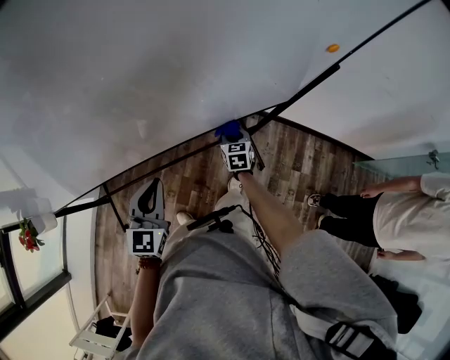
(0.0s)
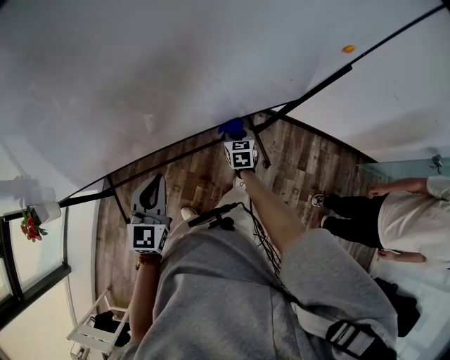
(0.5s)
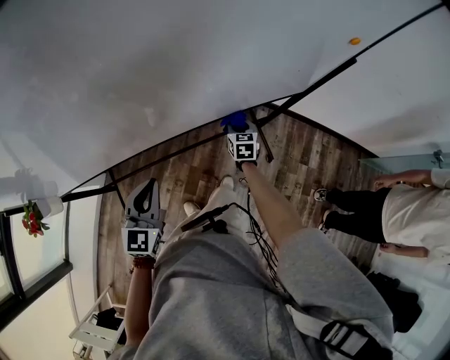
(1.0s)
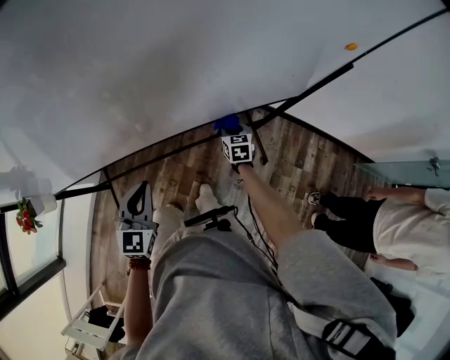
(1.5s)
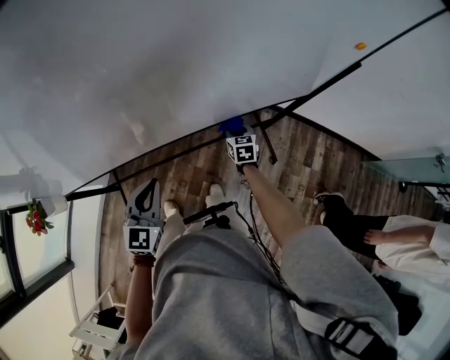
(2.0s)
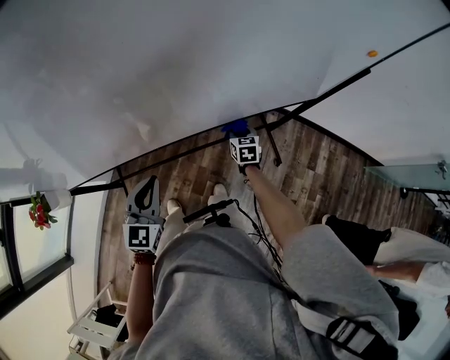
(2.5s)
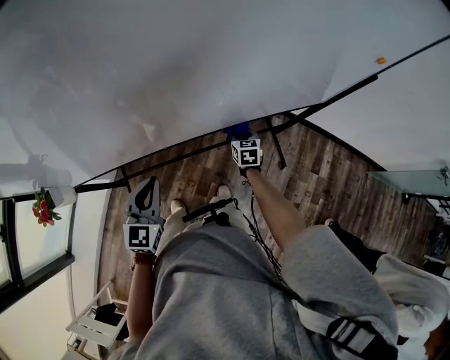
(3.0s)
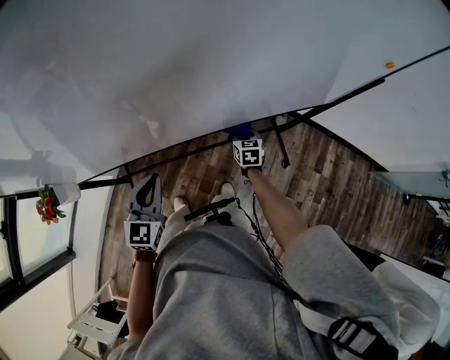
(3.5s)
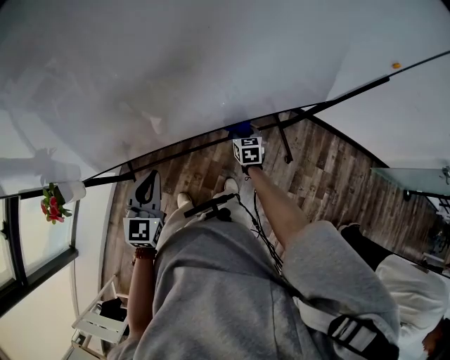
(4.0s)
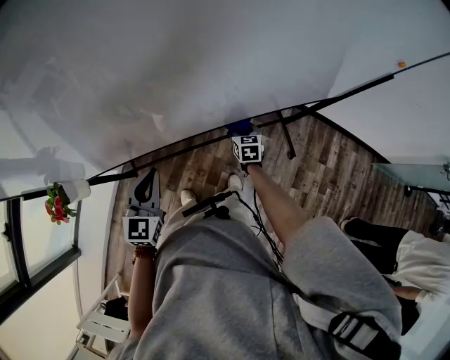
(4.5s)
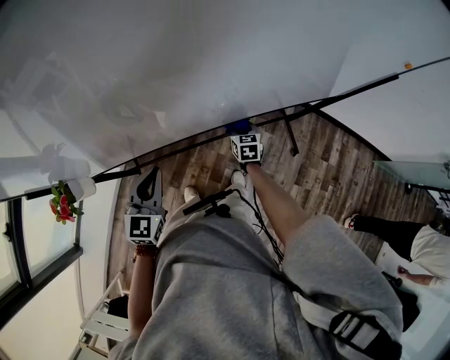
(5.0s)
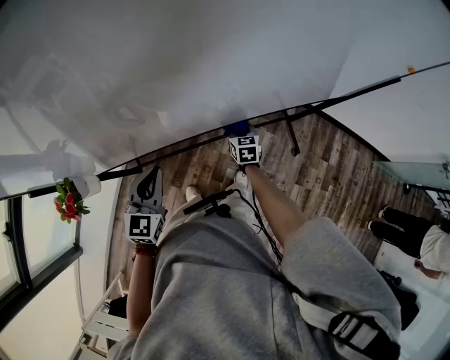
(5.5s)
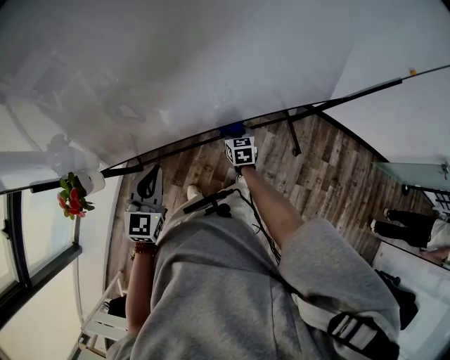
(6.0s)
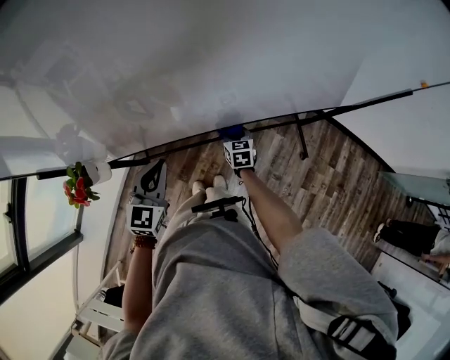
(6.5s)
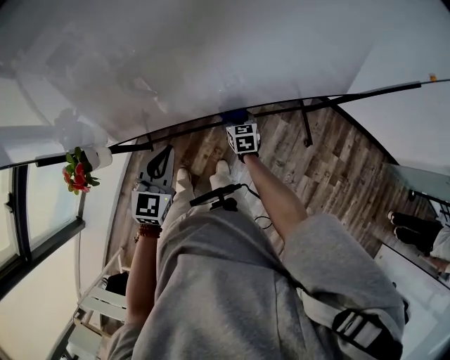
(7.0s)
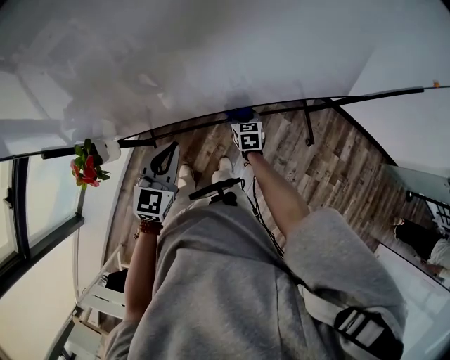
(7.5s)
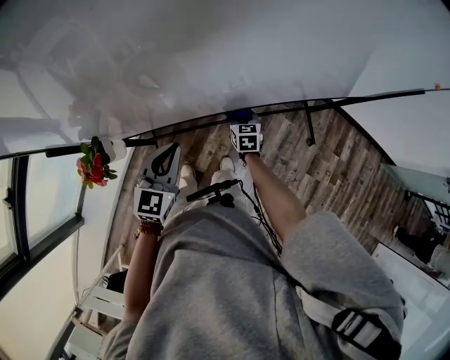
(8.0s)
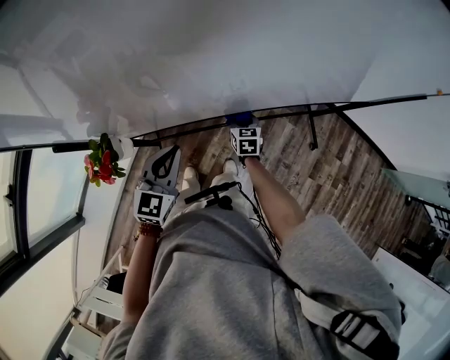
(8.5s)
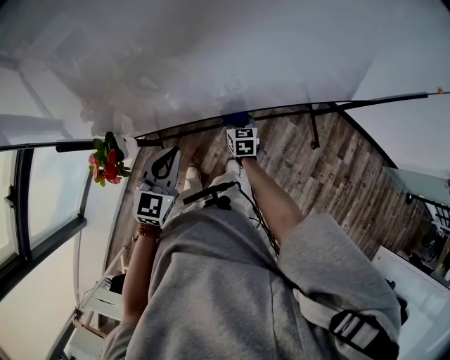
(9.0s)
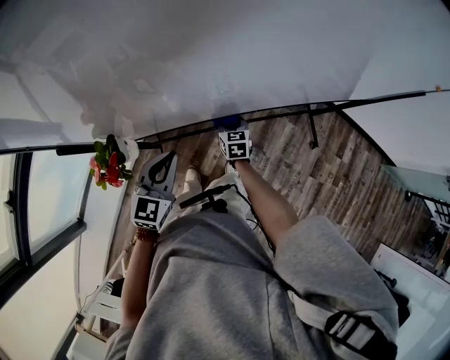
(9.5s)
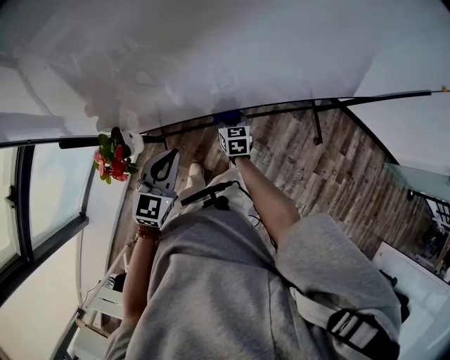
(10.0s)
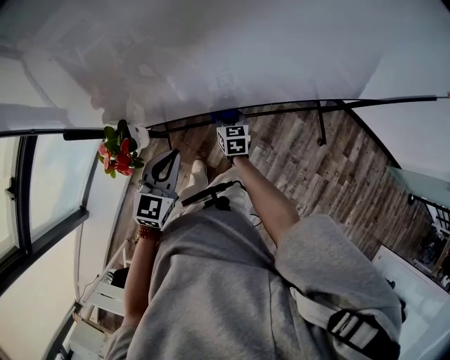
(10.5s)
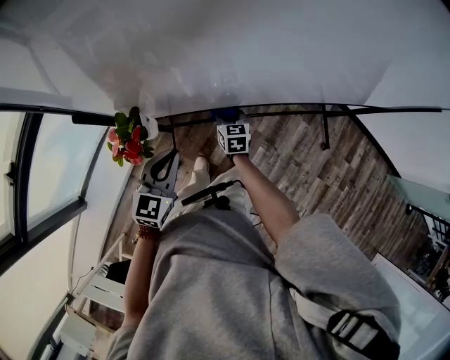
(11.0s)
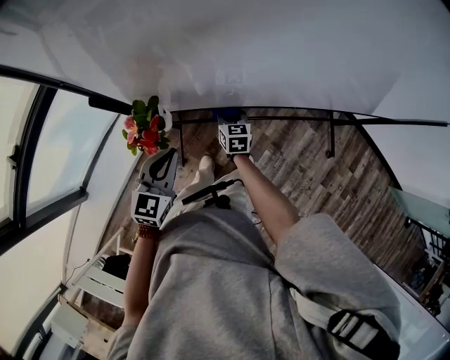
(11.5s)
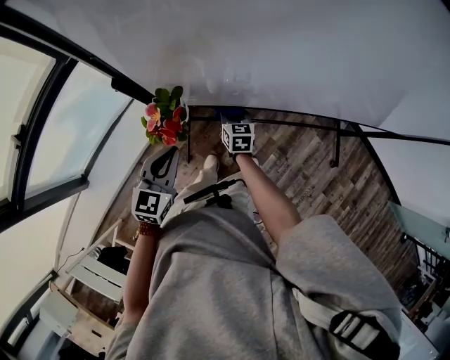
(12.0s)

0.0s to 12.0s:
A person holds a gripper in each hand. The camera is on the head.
0.0s to 2.0s: Both grippers travel together to the left, about 10 cm.
2.0s to 4.0s: Both grippers move to the left, approximately 10 cm.
4.0s to 6.0s: Both grippers travel together to the left, roughly 10 cm.
6.0s to 8.0s: The right gripper moves to the left, roughly 10 cm.
8.0s to 10.0s: The left gripper heads to the left, covering approximately 5 cm; the right gripper heads to the left, covering some 10 cm.
10.0s to 12.0s: The right gripper is displaced to the left by roughly 15 cm. The left gripper heads to the left and backward, covering roughly 15 cm.

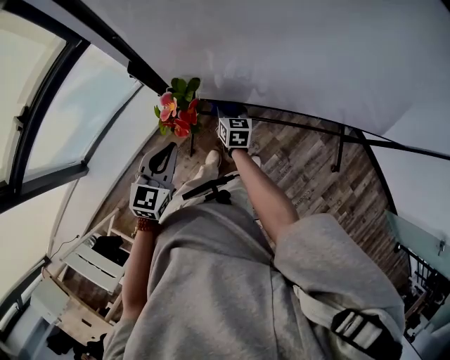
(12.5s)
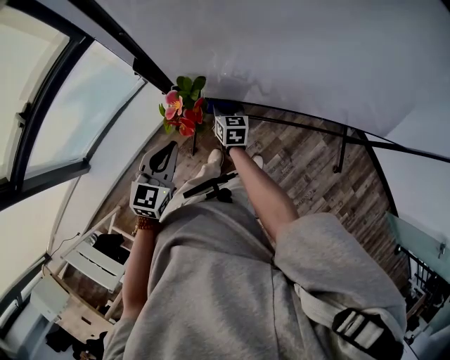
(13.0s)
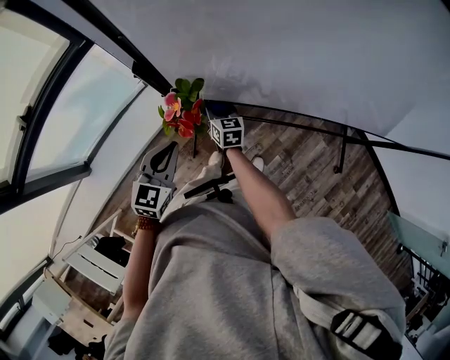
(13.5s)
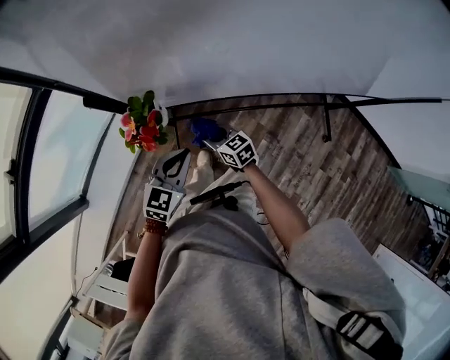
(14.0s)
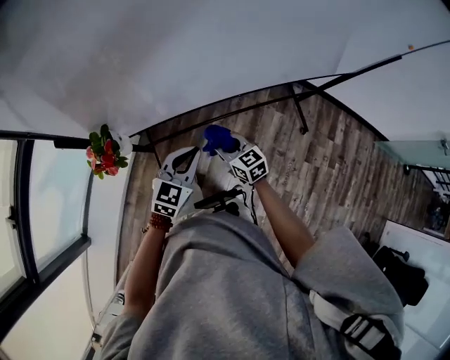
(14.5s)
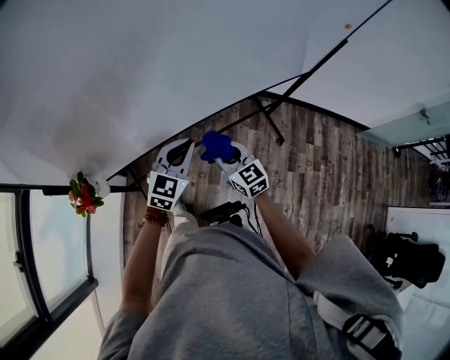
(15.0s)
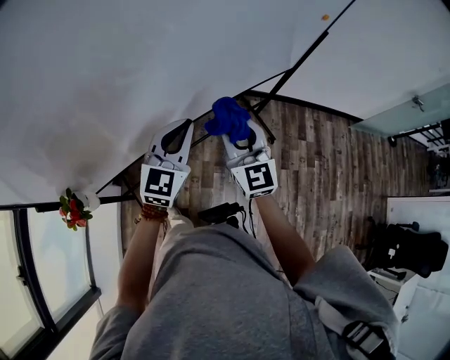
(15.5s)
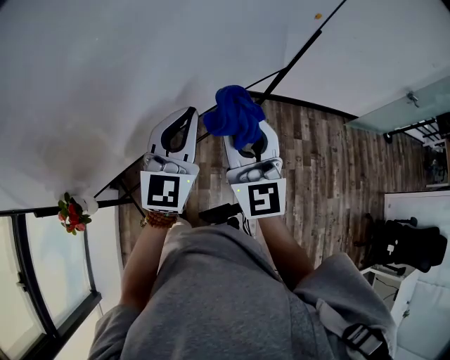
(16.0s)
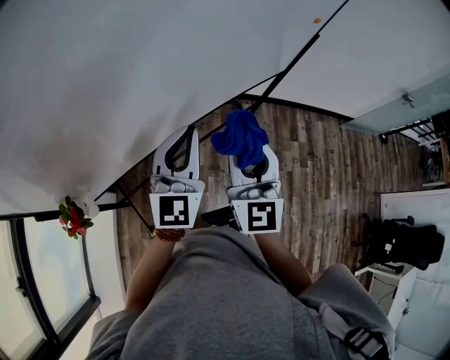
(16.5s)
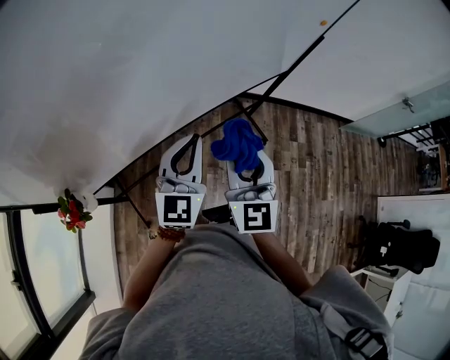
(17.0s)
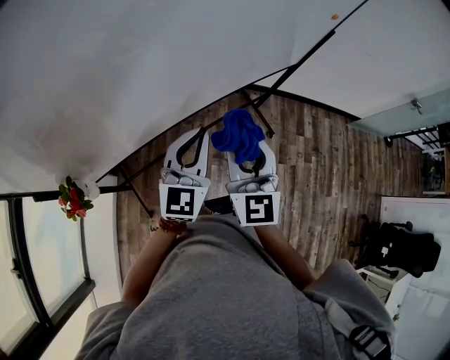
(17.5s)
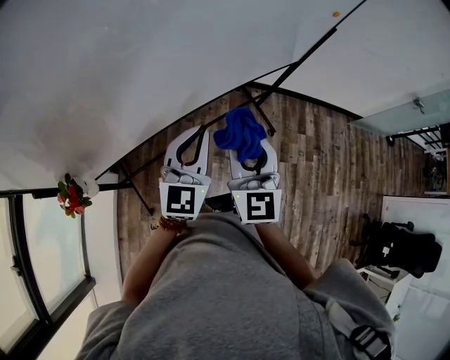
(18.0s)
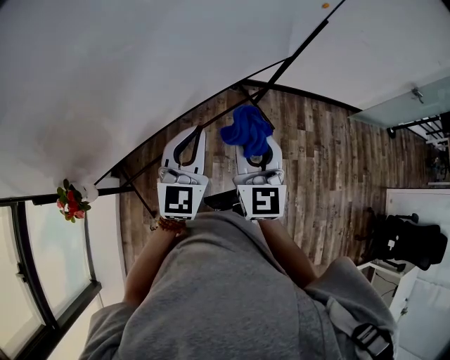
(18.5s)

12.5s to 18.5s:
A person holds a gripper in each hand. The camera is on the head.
12.5s to 14.5s: The right gripper moves to the right, backward and upward, approximately 25 cm. The left gripper heads to the right, covering roughly 25 cm, and swivels some 30 degrees.
14.5s to 16.5s: The two grippers go roughly 40 cm upward and to the right. The right gripper tips its fingers upward by approximately 30 degrees. The left gripper swivels some 30 degrees.
16.5s to 18.5s: Both grippers move downward, about 5 cm.

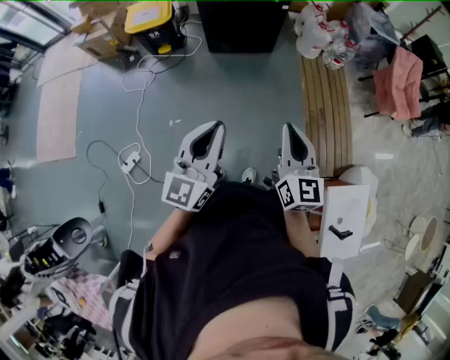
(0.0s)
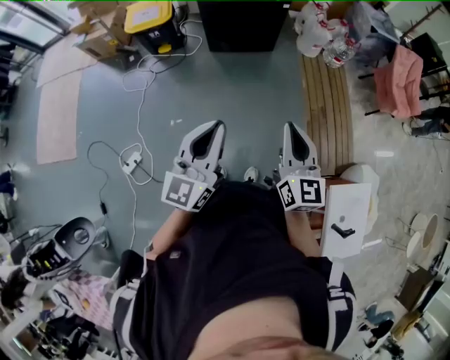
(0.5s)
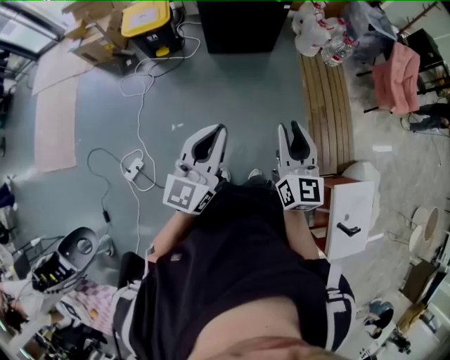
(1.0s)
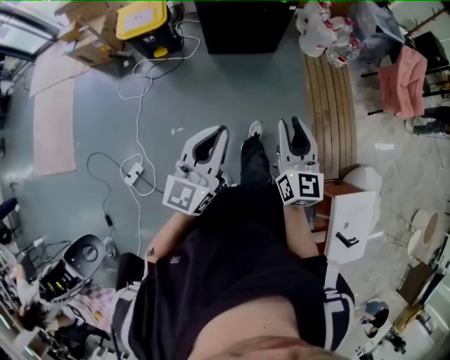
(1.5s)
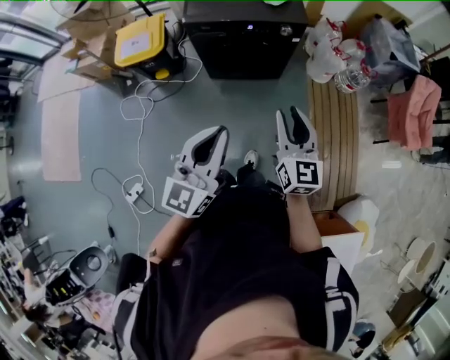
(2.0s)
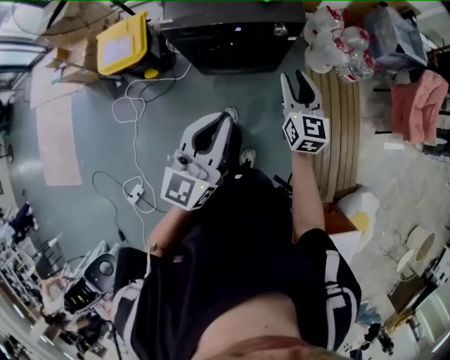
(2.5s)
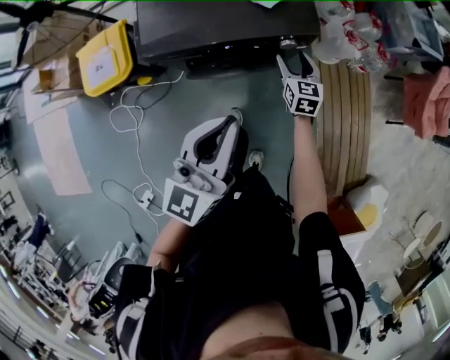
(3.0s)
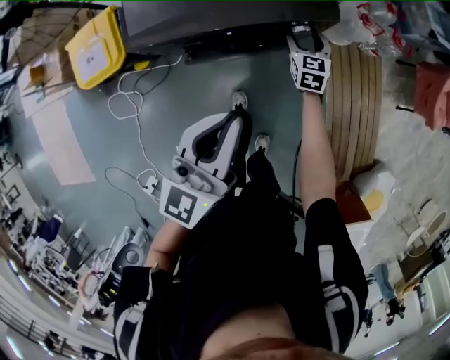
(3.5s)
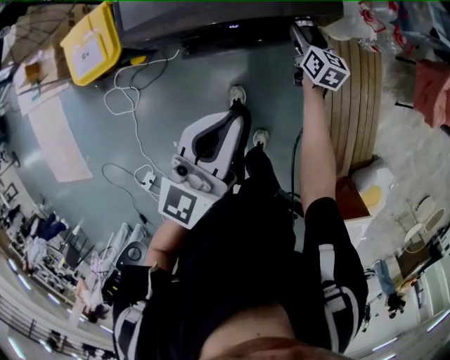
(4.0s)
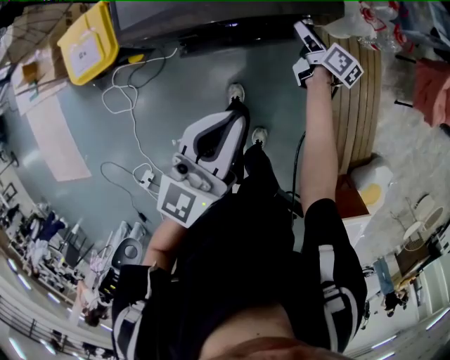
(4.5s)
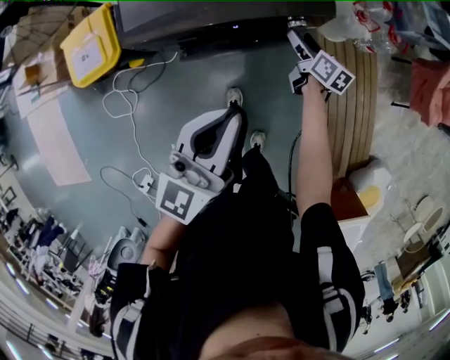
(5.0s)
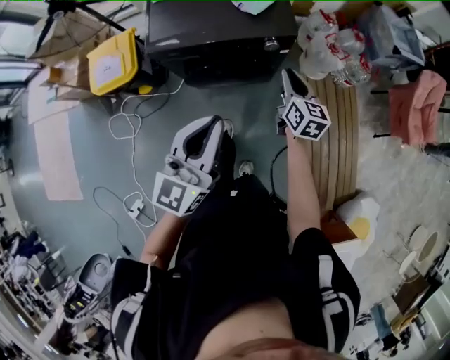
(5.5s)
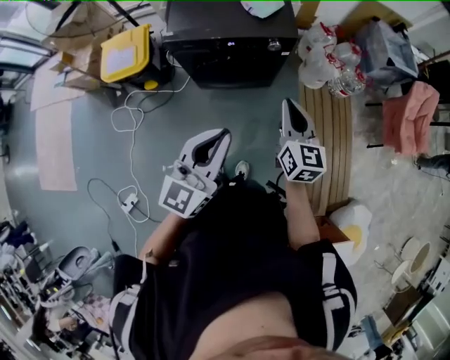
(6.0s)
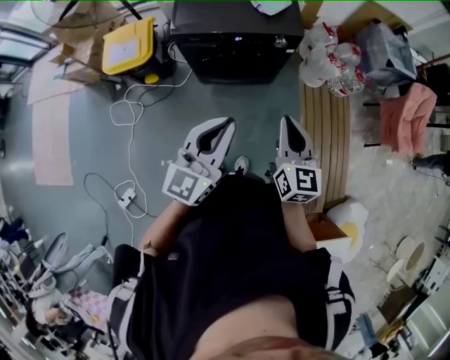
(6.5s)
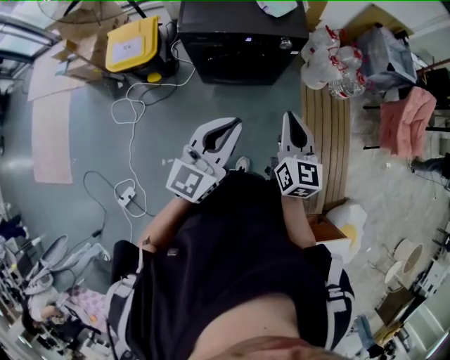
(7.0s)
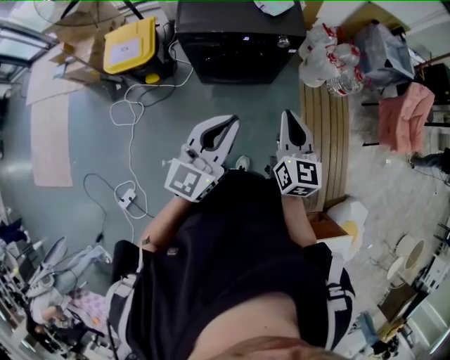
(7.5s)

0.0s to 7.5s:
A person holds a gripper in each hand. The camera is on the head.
0.0s to 2.0s: The two grippers travel together, forward, approximately 50 cm. The right gripper opens.
2.0s to 4.0s: The two grippers travel together, forward, some 60 cm. The left gripper moves downward, about 25 cm, while the right gripper is displaced downward by approximately 40 cm, swivels some 30 degrees, and opens up.
4.0s to 5.5s: The left gripper is displaced backward and upward by some 25 cm. Meanwhile the right gripper heads upward and backward, covering roughly 35 cm, and closes up.
5.5s to 7.5s: The left gripper goes approximately 15 cm backward, while the right gripper moves backward and upward, some 35 cm.

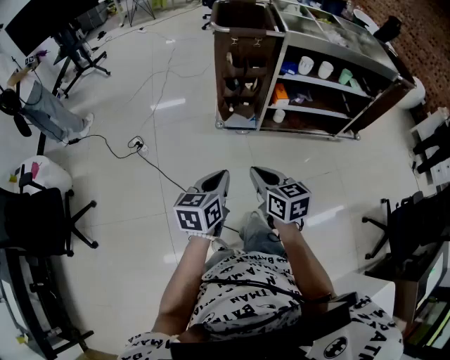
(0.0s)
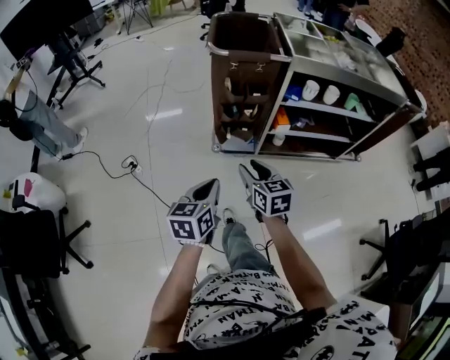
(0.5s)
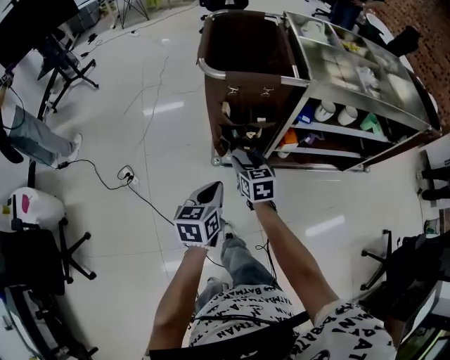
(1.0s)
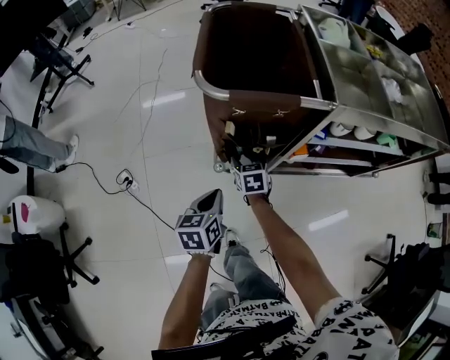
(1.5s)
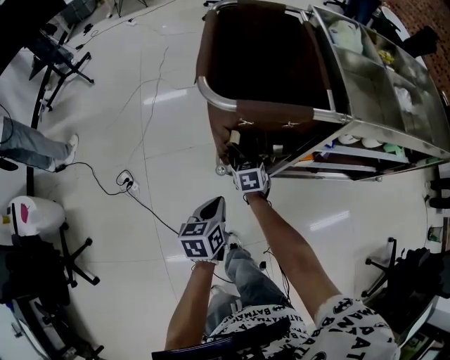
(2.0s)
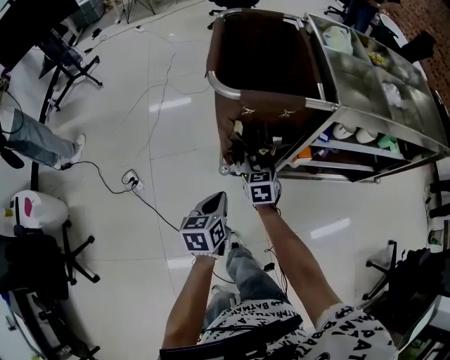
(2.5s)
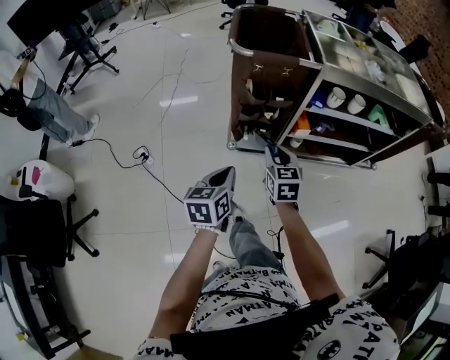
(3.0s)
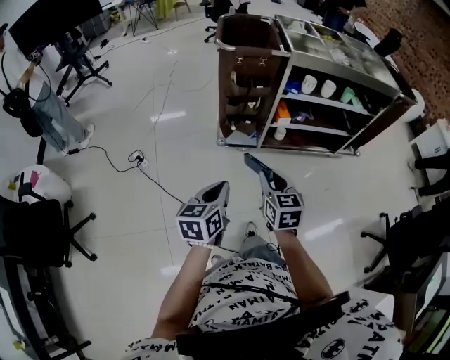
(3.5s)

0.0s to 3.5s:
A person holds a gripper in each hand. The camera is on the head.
0.0s to 2.0s: The left gripper heads forward, covering some 40 cm, while the right gripper shifts approximately 60 cm forward and downward, turns by roughly 30 degrees, and opens.
2.0s to 3.5s: Both grippers move backward and upward, some 50 cm. The right gripper swivels about 20 degrees.
